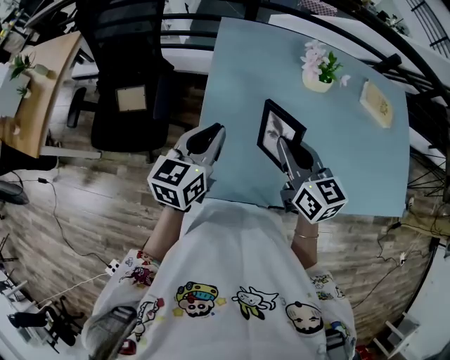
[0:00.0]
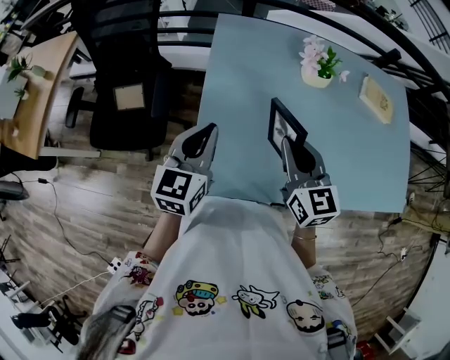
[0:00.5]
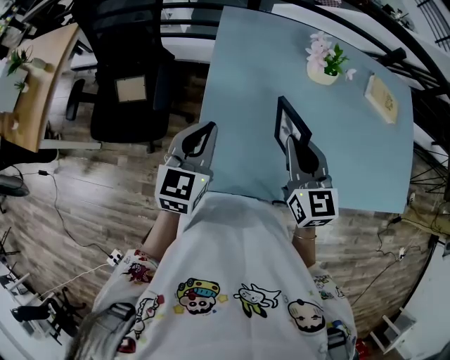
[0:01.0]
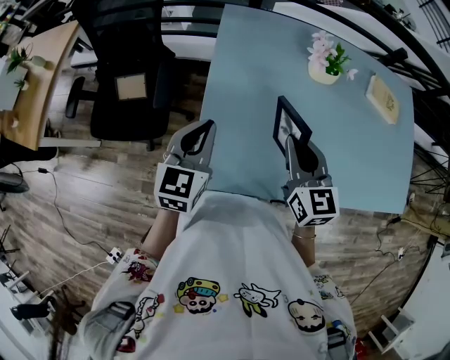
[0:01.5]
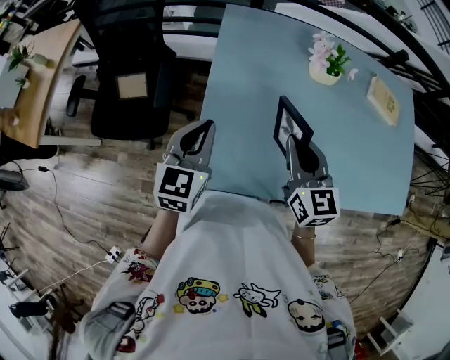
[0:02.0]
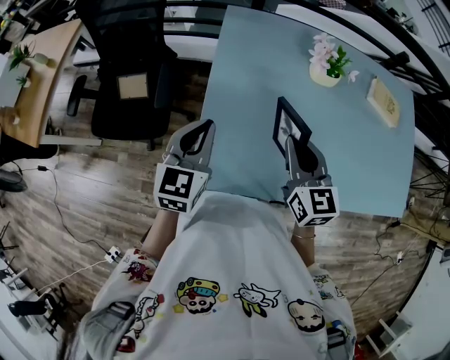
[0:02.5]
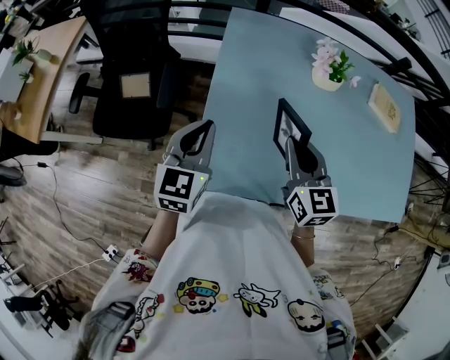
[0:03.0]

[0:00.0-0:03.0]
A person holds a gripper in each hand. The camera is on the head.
0:00.0 to 0:01.5: There are only small adjustments of the grippers.
0:01.5 to 0:03.0: Both grippers stay put.

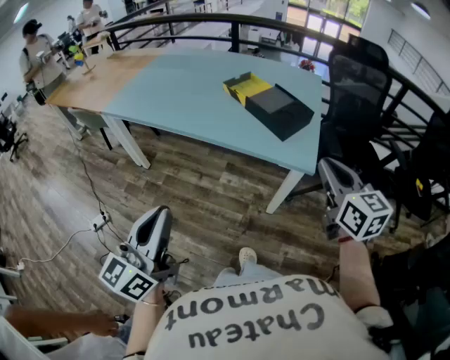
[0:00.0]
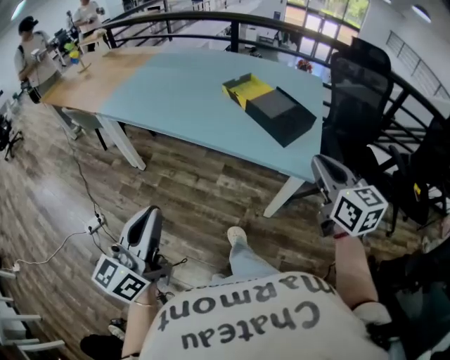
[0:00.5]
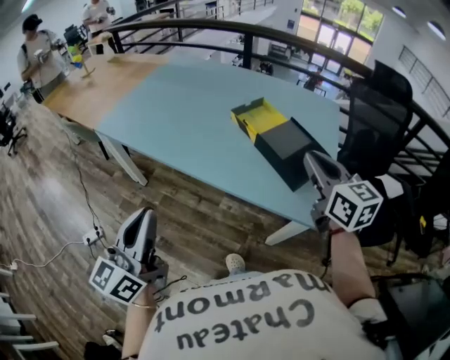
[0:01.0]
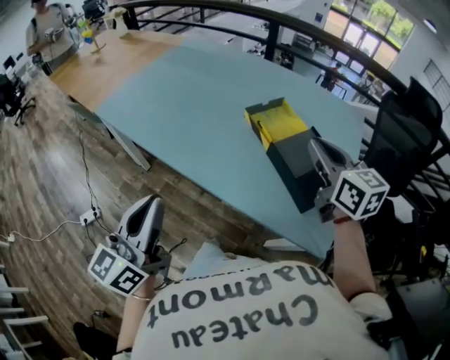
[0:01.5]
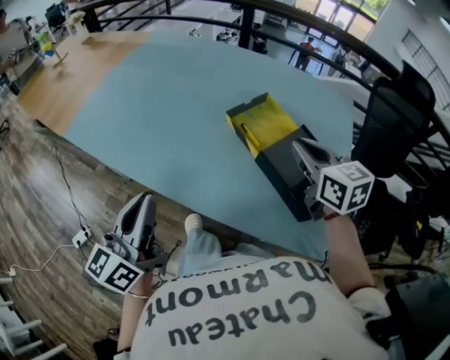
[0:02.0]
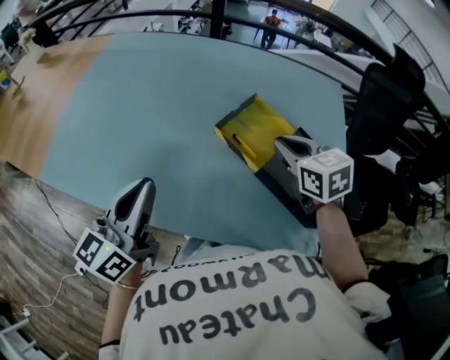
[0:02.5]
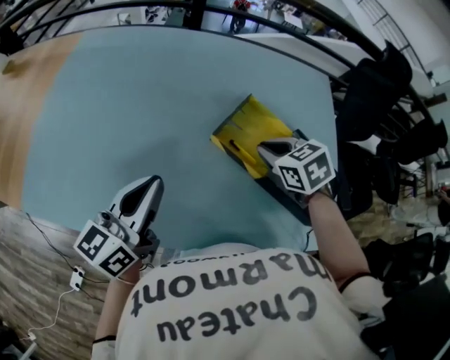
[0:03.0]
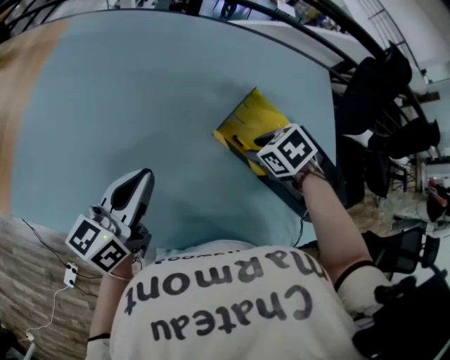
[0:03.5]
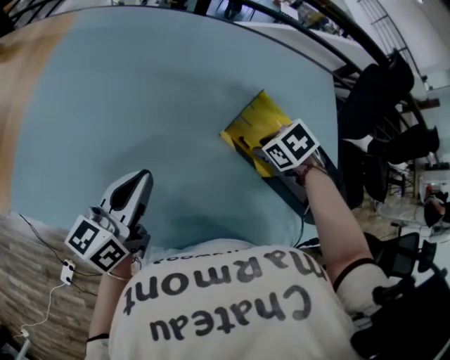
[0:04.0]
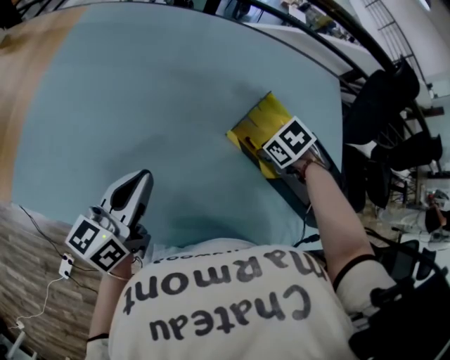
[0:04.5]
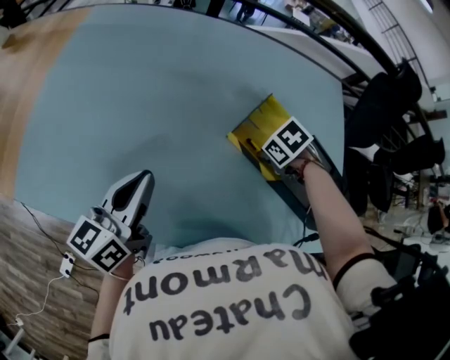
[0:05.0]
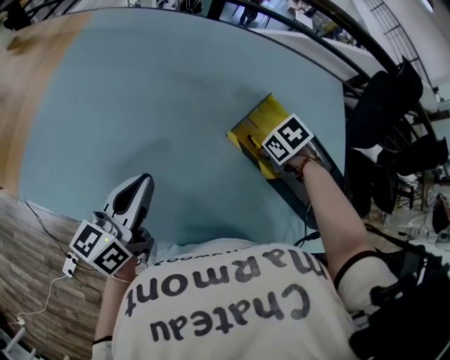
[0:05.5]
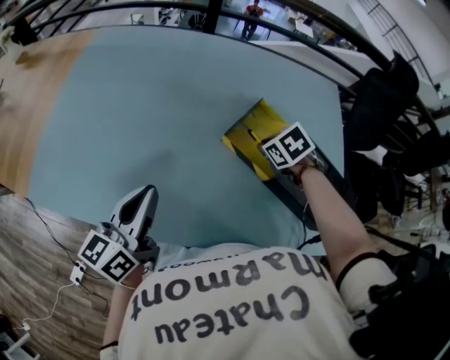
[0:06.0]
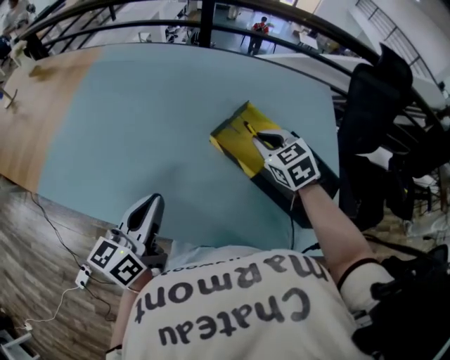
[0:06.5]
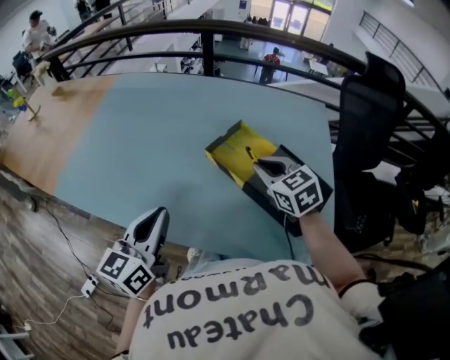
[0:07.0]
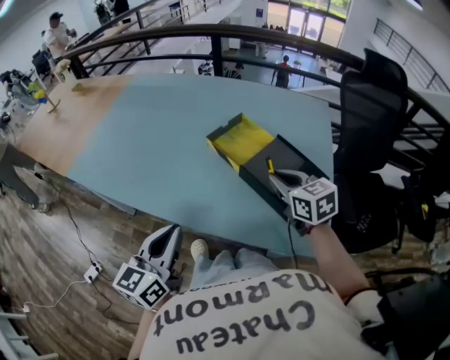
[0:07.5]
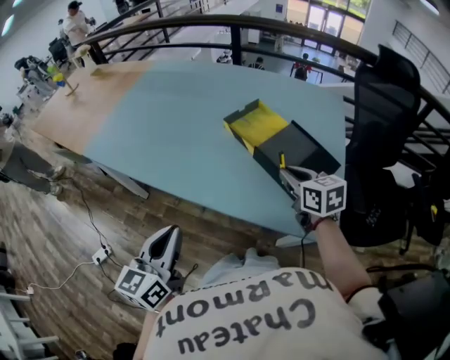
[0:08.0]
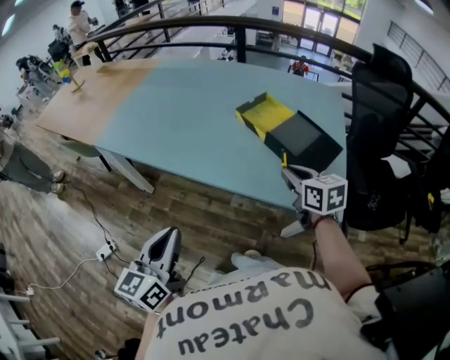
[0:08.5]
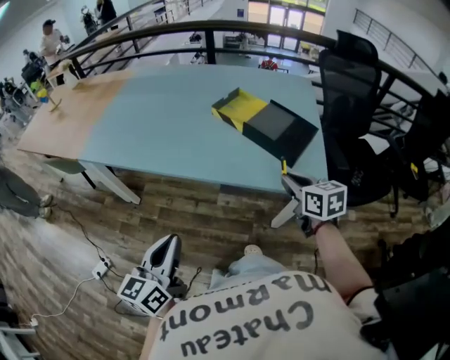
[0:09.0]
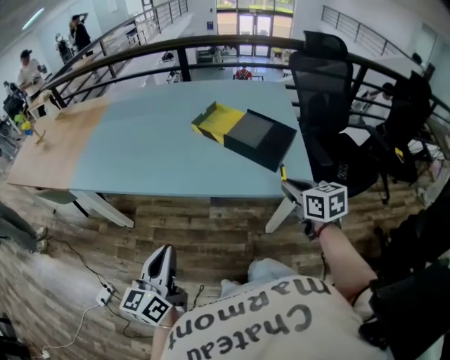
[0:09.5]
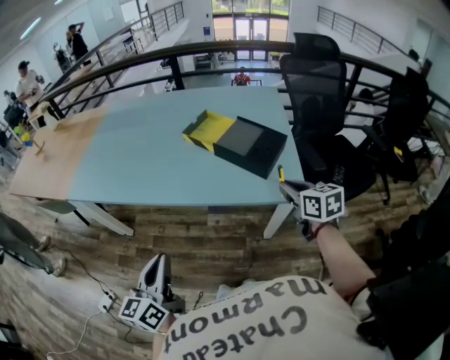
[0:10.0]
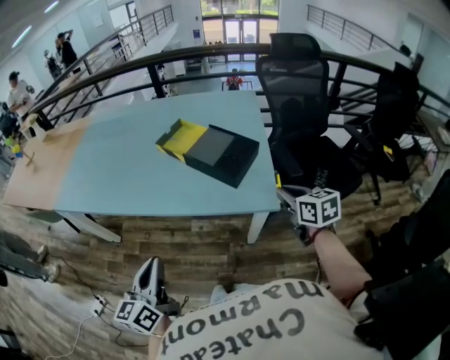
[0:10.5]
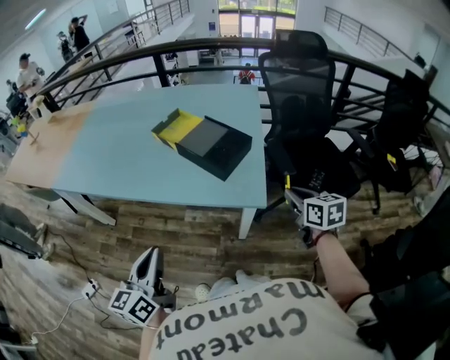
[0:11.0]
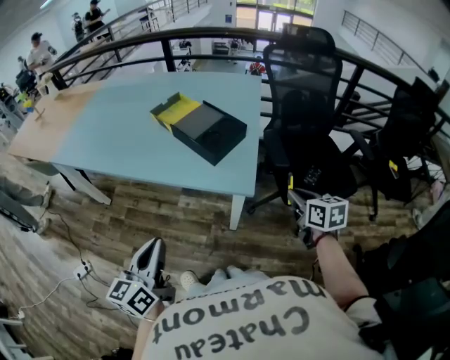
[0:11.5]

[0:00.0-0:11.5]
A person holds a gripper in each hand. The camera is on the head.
0:00.0 to 0:02.0: The grippers both shift forward by some 40 cm.
0:02.0 to 0:04.0: The left gripper shifts by approximately 25 cm, and changes its angle by some 30 degrees. The right gripper travels downward by some 20 cm, points its fingers roughly 60 degrees further downward, and opens.
0:04.0 to 0:06.0: The left gripper changes place by approximately 5 cm.
0:06.0 to 0:07.5: The right gripper is displaced backward, upward and to the right by about 25 cm, and tips its fingers upward by roughly 40 degrees; the left gripper is displaced backward and to the right by roughly 25 cm.
0:07.5 to 0:09.5: The left gripper shifts approximately 20 cm backward and to the left; the right gripper moves backward, some 25 cm, and changes its angle by some 20 degrees.
0:09.5 to 0:11.5: Both grippers travel together to the right, approximately 25 cm.

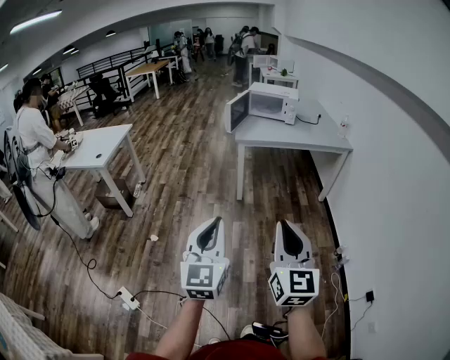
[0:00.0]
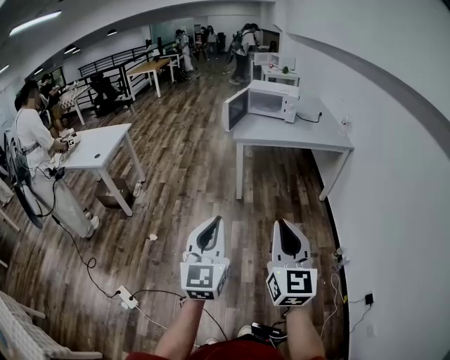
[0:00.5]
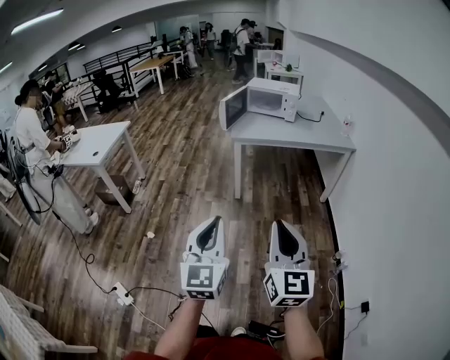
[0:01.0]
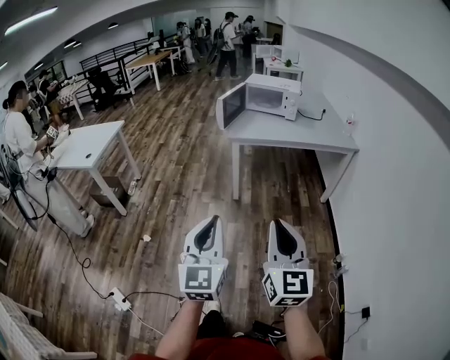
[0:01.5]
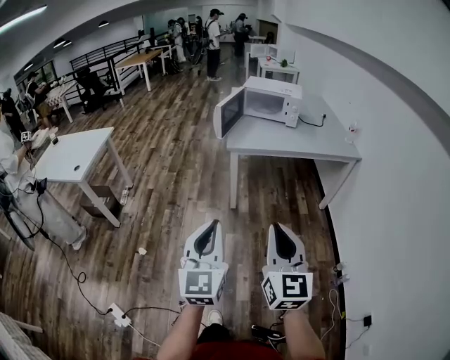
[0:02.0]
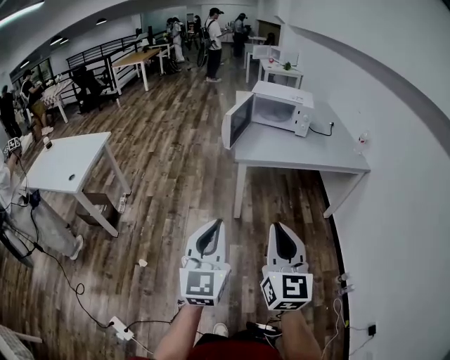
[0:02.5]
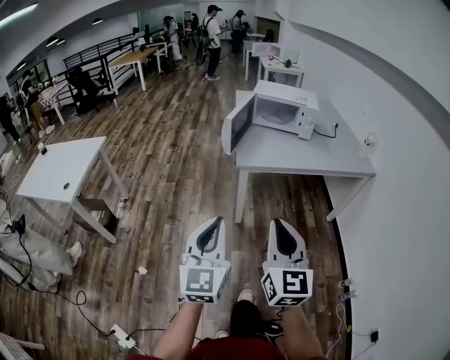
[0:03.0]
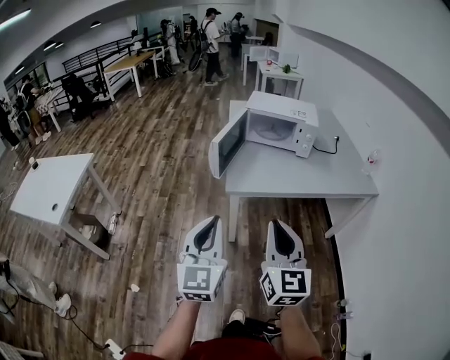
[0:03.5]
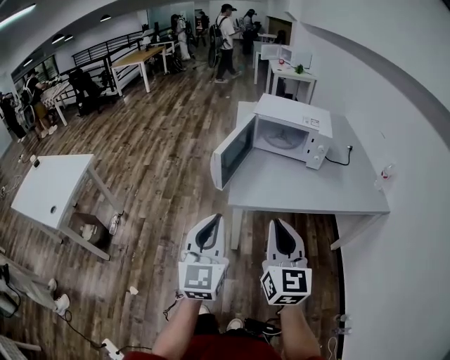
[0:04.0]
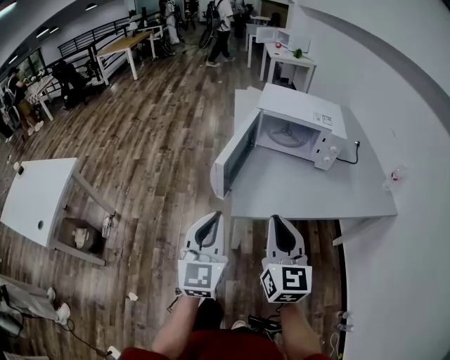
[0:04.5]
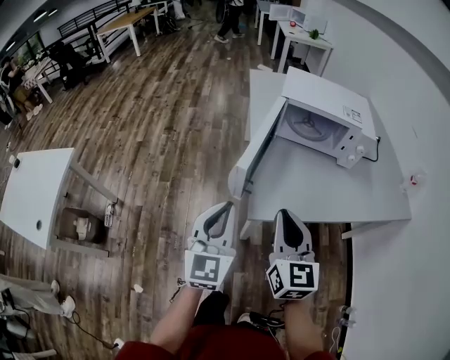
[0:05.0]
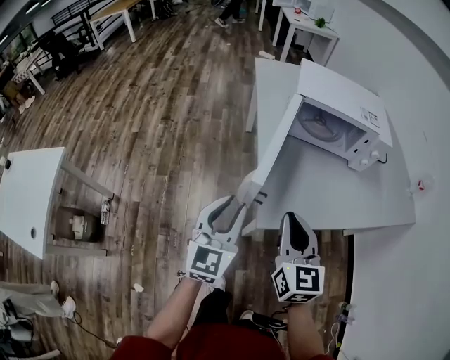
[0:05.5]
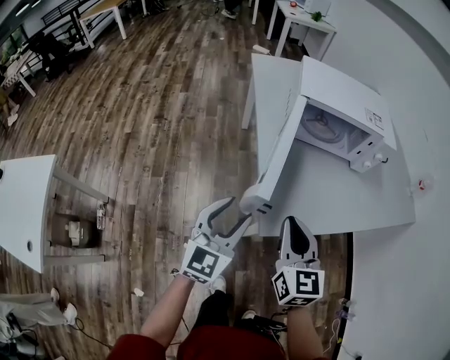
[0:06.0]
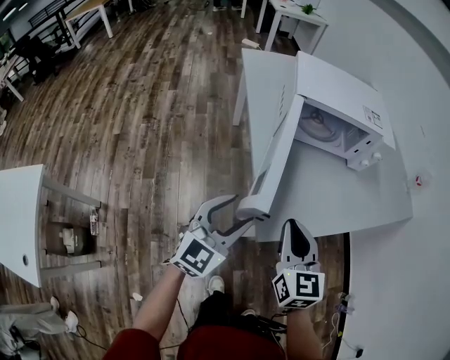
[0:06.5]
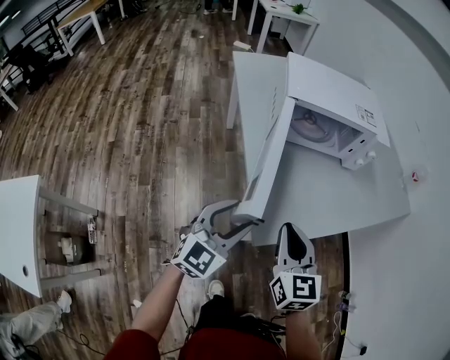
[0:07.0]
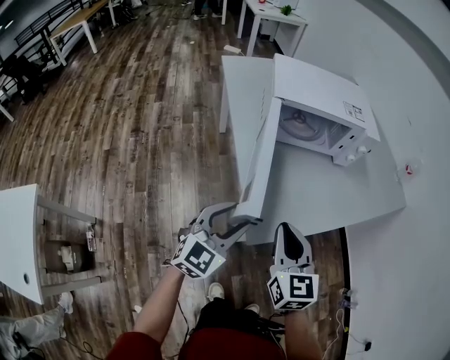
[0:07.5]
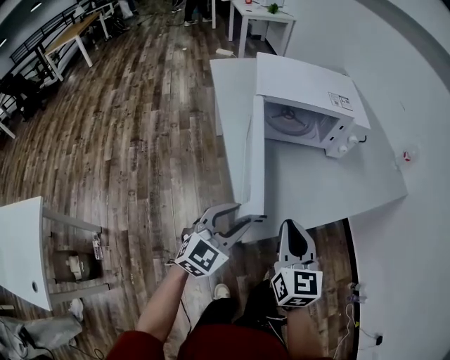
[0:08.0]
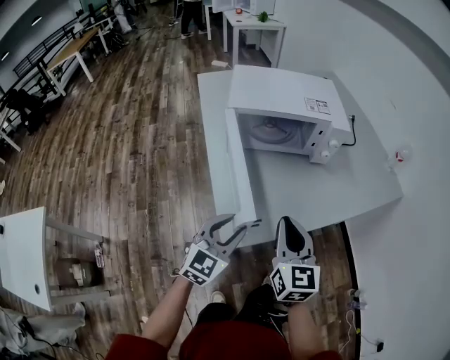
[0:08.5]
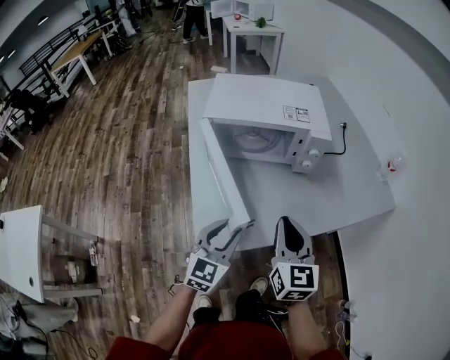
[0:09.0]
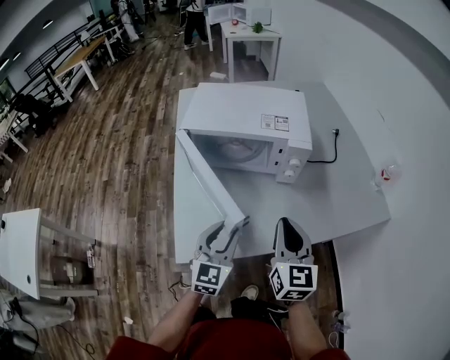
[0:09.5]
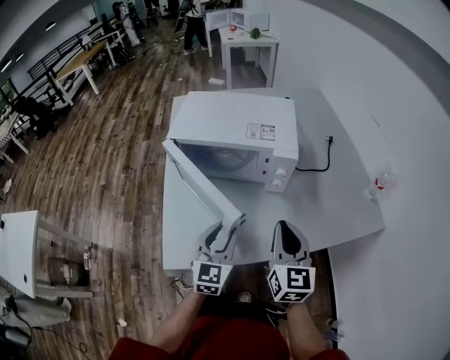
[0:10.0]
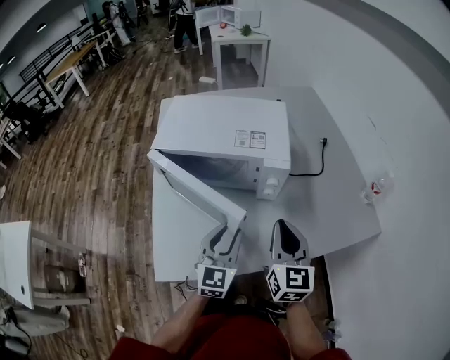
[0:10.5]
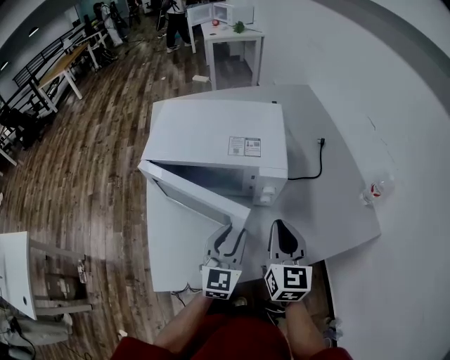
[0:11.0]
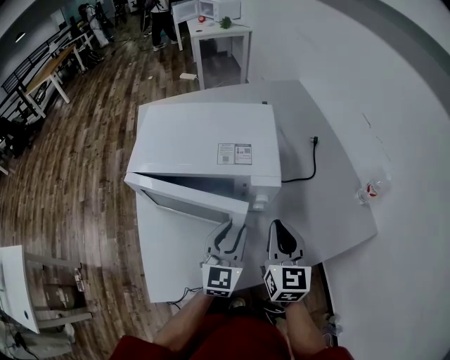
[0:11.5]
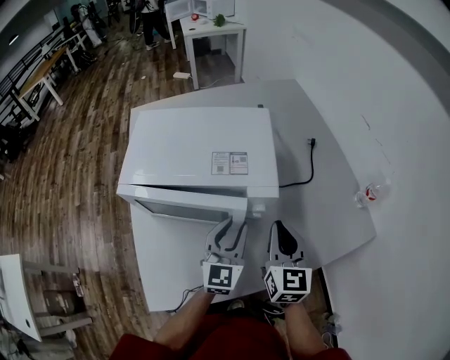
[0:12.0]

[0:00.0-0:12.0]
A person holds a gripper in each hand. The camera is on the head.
0:00.0 to 0:02.0: Both grippers travel together forward, some 25 cm.
0:02.0 to 0:04.0: Both grippers are carried forward, approximately 40 cm.
0:04.0 to 0:06.0: Both grippers travel together forward, downward and to the left, roughly 35 cm. The left gripper turns by some 30 degrees, and opens up.
0:06.0 to 0:08.0: The two grippers go some 5 cm to the right. The left gripper changes its angle by approximately 20 degrees.
0:08.0 to 0:10.0: The two grippers go about 30 cm to the right and forward. The left gripper changes its angle by roughly 30 degrees.
0:10.0 to 0:12.0: The right gripper moves forward, about 15 cm, while the left gripper shifts roughly 20 cm forward and to the right.
